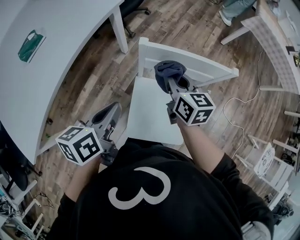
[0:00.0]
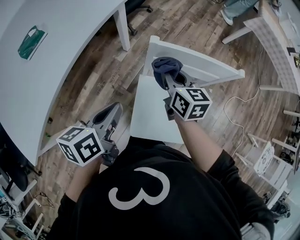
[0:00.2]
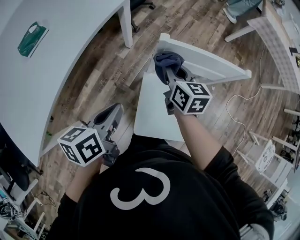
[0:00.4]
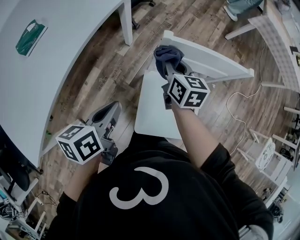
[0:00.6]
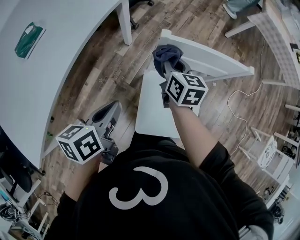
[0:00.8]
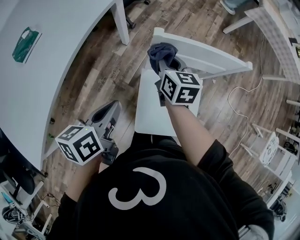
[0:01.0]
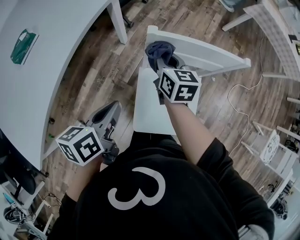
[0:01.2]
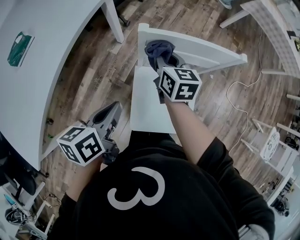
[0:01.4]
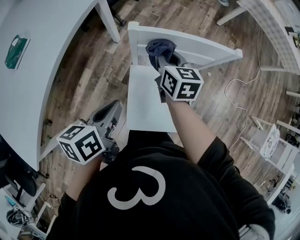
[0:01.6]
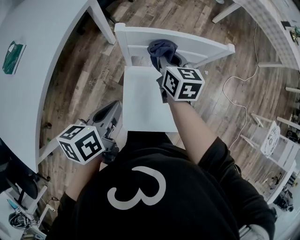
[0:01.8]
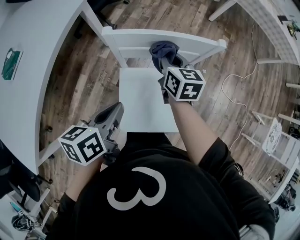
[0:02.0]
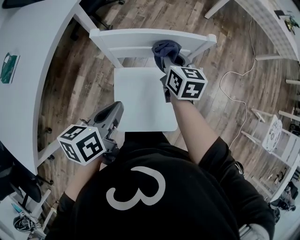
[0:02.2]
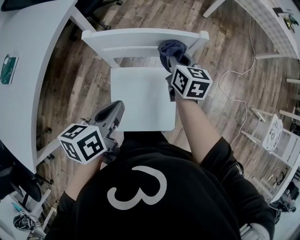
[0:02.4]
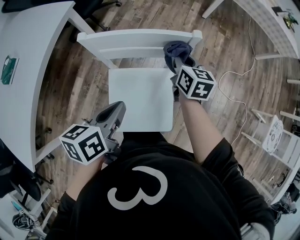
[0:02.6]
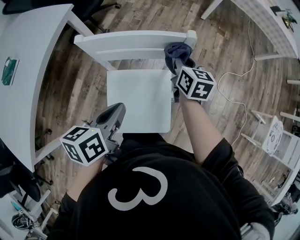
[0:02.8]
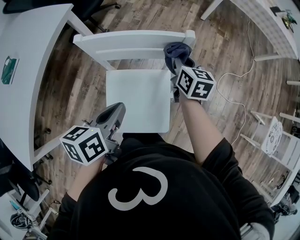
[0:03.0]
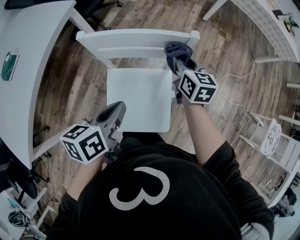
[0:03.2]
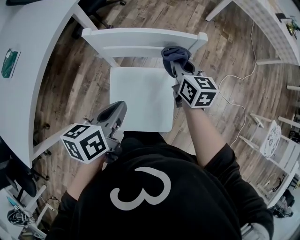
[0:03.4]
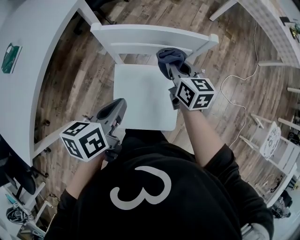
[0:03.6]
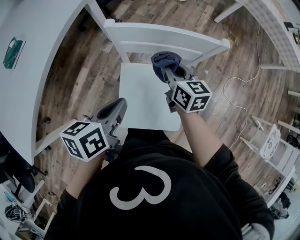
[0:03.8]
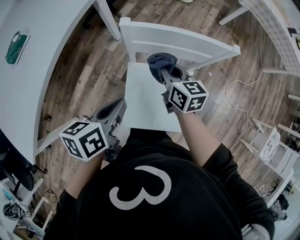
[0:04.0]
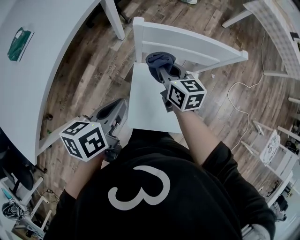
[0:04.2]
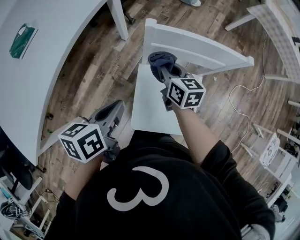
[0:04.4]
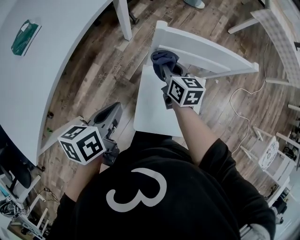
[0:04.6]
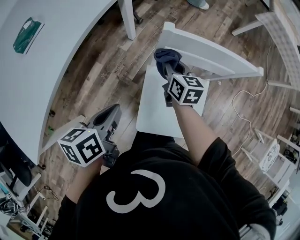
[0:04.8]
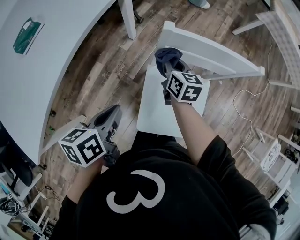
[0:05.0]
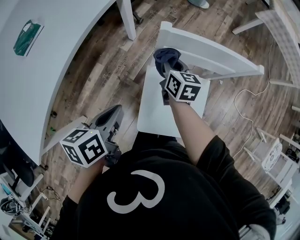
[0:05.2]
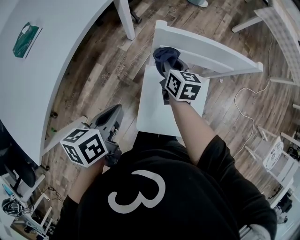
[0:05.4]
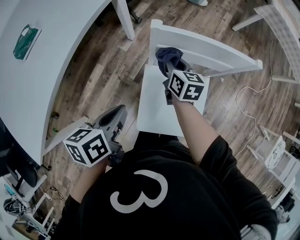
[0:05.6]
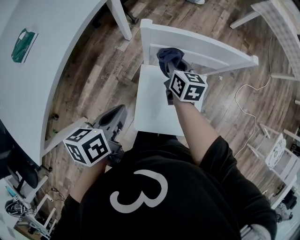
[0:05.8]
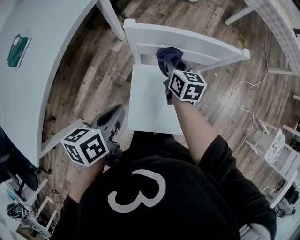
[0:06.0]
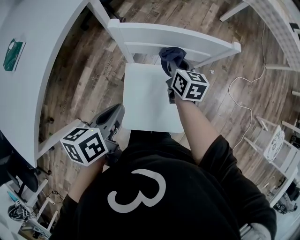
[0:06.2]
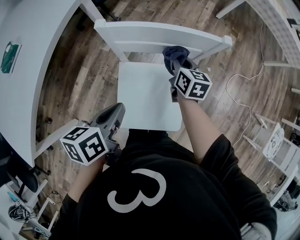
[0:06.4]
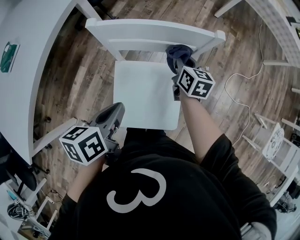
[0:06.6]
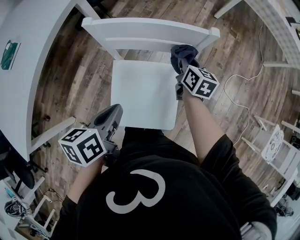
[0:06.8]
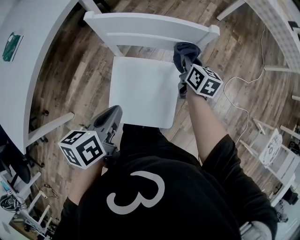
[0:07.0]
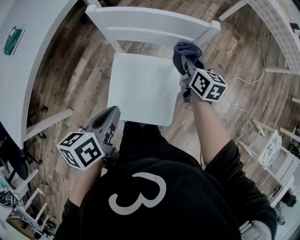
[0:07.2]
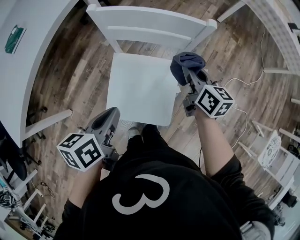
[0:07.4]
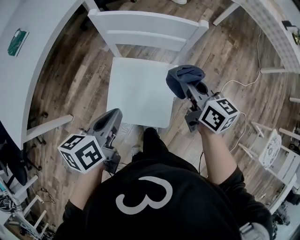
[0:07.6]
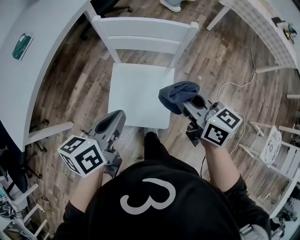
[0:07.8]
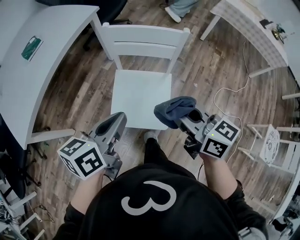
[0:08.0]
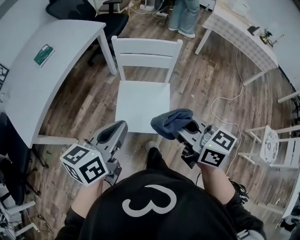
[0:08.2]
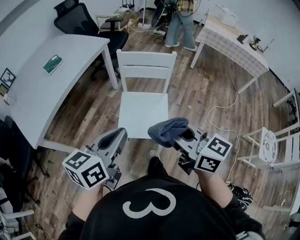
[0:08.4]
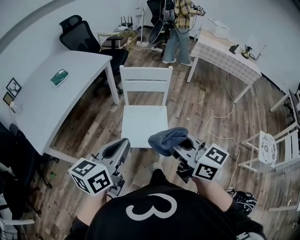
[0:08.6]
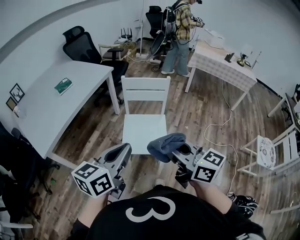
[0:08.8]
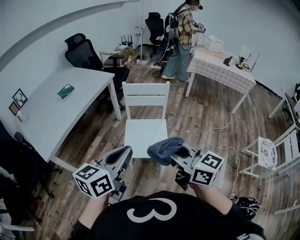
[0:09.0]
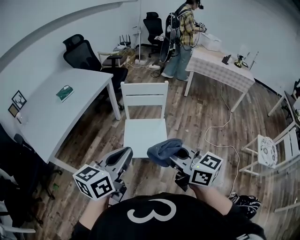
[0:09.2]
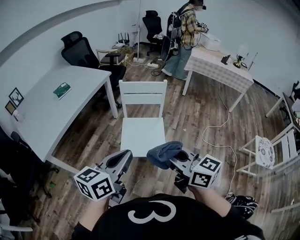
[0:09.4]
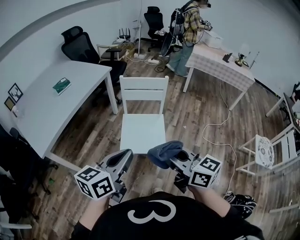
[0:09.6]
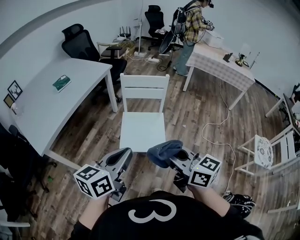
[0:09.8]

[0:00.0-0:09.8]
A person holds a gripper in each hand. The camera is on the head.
0:00.0 to 0:01.4: The right gripper changes place by roughly 5 cm.
0:01.4 to 0:02.8: The two grippers go approximately 20 cm to the right.
0:02.8 to 0:04.2: The right gripper is displaced to the left by about 25 cm, and rotates roughly 20 degrees, while the left gripper moves to the left, roughly 15 cm.
0:04.2 to 0:05.6: The right gripper changes place by about 5 cm.
0:05.6 to 0:07.0: The left gripper heads to the right, covering roughly 15 cm; the right gripper goes some 25 cm to the right.
0:07.0 to 0:08.4: The left gripper heads backward and upward, covering about 30 cm, and turns by some 30 degrees, while the right gripper moves backward and upward, some 60 cm, and turns by some 40 degrees.
0:08.4 to 0:09.8: Both grippers travel together backward, some 10 cm.

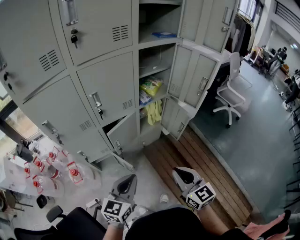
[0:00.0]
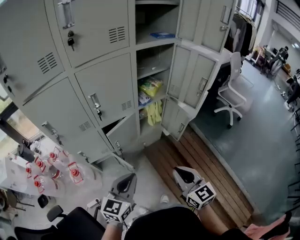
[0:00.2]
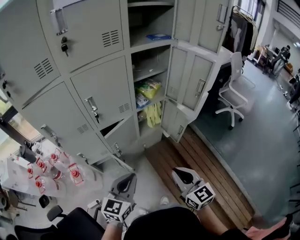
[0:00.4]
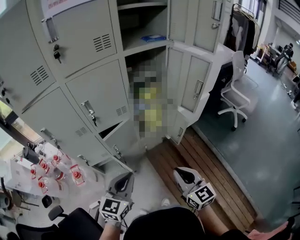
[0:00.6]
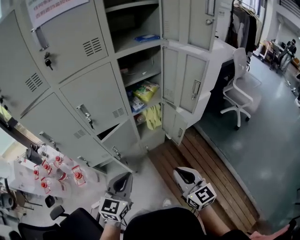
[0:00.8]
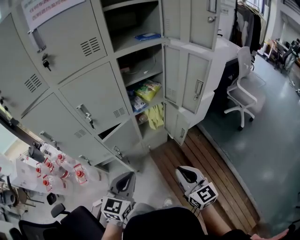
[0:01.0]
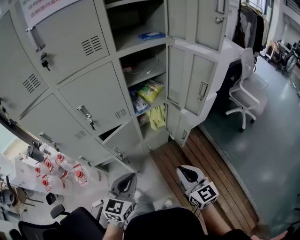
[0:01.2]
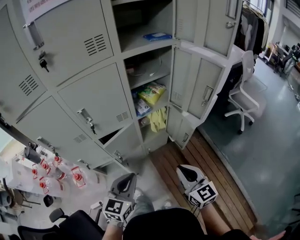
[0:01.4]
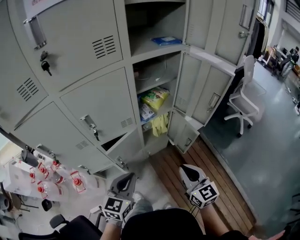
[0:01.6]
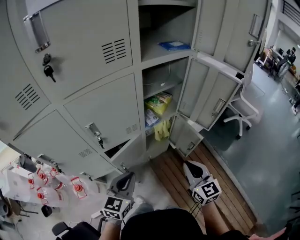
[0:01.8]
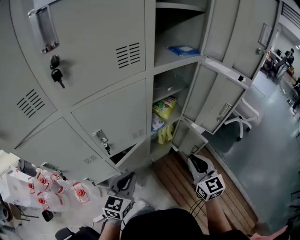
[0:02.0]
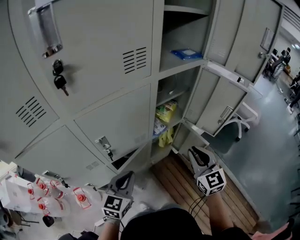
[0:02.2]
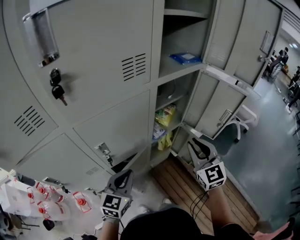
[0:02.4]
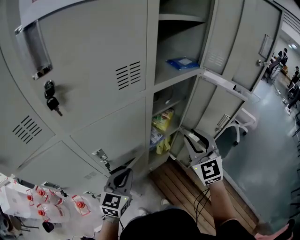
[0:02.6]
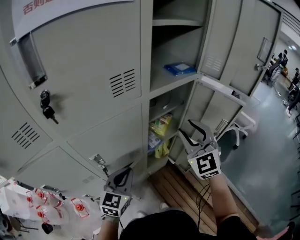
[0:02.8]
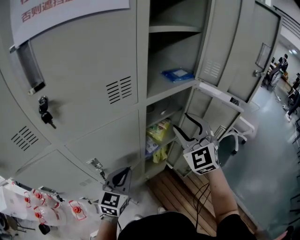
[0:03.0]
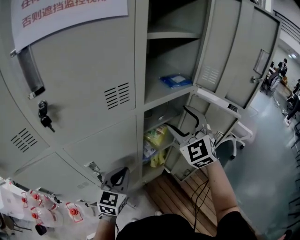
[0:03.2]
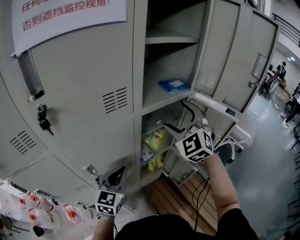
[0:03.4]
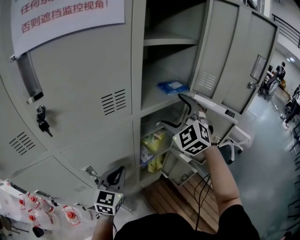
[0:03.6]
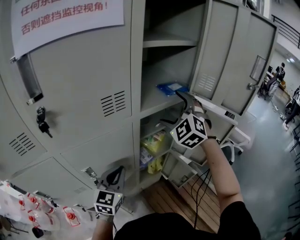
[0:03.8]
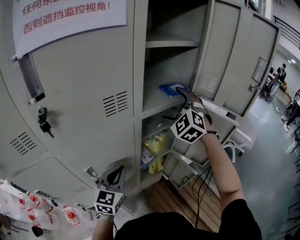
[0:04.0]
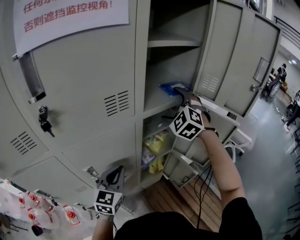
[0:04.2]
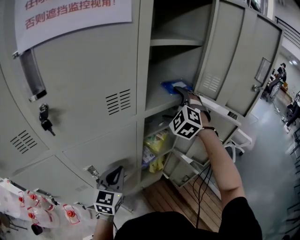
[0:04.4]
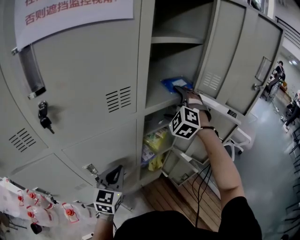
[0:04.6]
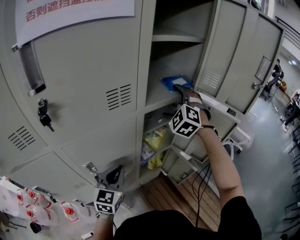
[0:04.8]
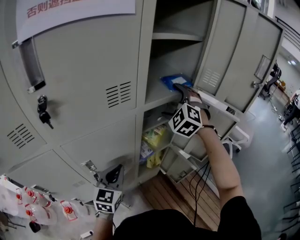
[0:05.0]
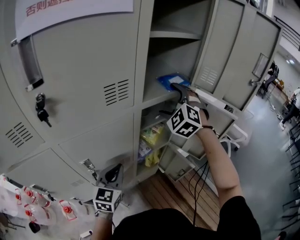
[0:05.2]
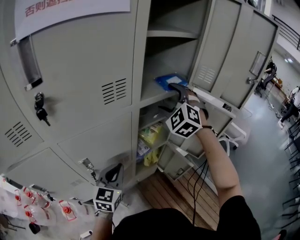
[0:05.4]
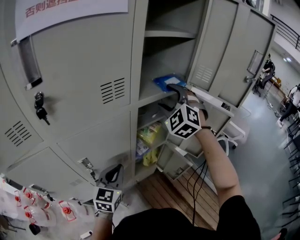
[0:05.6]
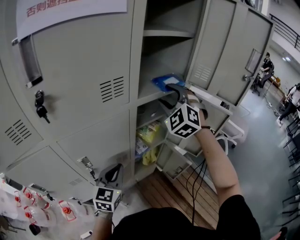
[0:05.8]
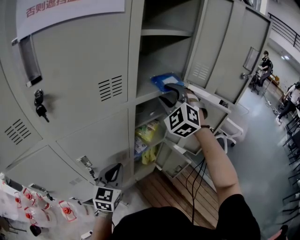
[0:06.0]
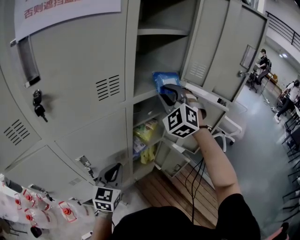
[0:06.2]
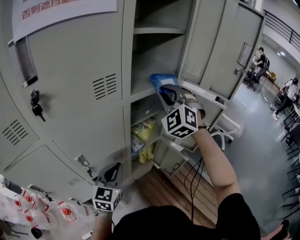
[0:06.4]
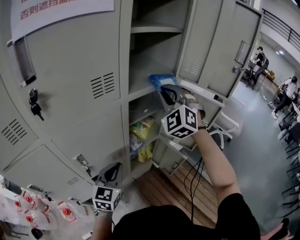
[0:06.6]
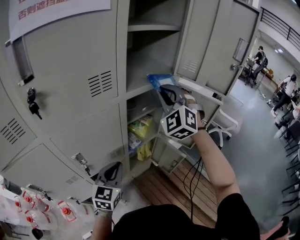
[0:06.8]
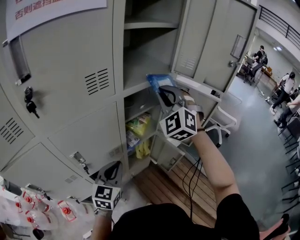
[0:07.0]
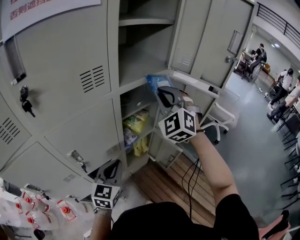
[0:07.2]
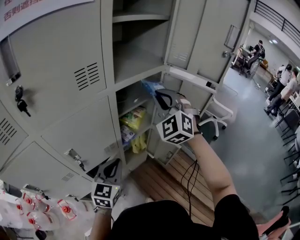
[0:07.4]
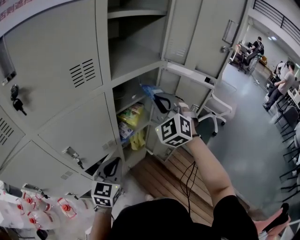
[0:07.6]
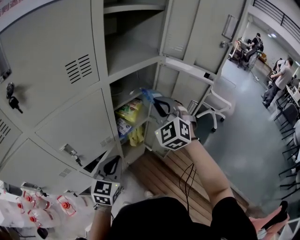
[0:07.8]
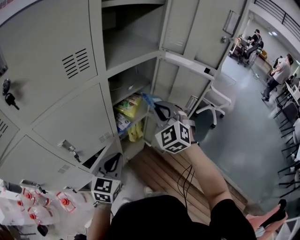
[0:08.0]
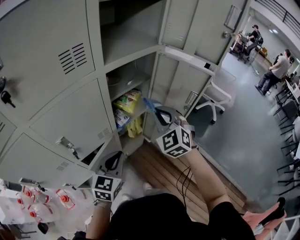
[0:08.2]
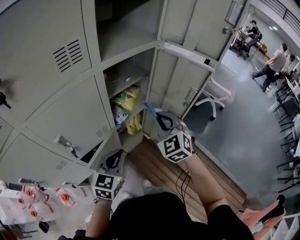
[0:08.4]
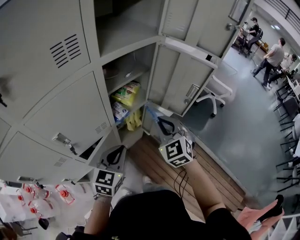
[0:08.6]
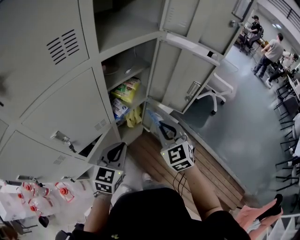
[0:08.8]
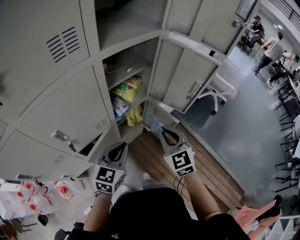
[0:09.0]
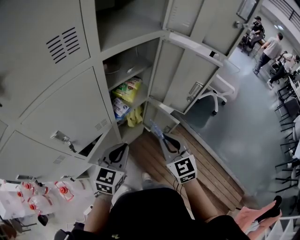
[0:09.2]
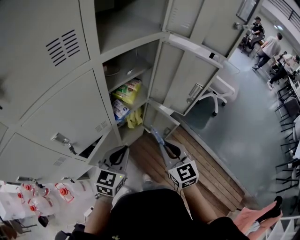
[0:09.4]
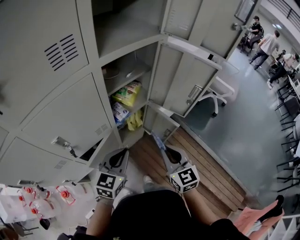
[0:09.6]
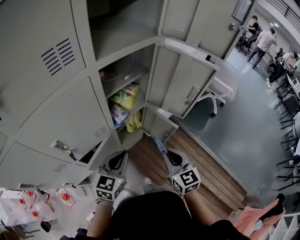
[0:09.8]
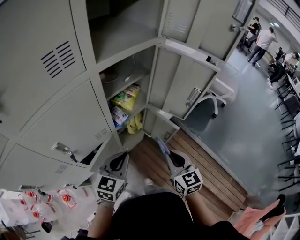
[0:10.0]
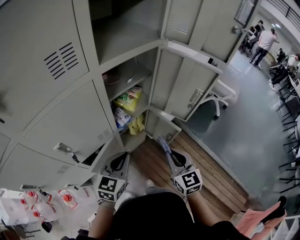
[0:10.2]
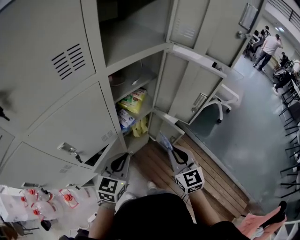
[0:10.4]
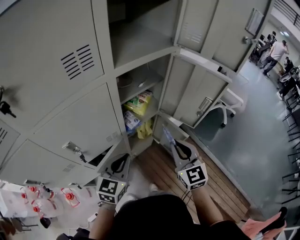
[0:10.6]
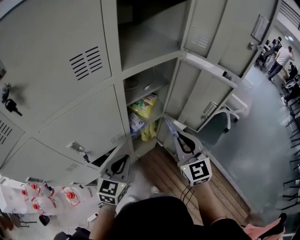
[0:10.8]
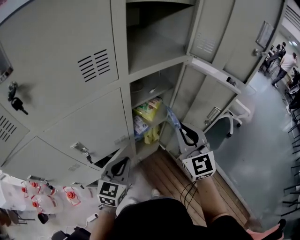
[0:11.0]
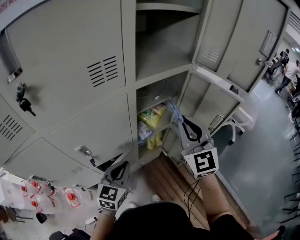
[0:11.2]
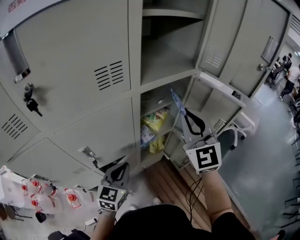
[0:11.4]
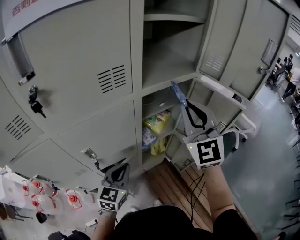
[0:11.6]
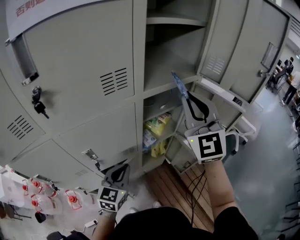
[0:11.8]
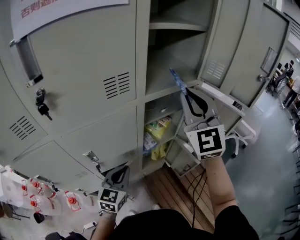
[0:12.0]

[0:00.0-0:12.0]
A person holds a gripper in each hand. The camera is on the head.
0:00.0 to 0:01.6: The right gripper travels forward and to the right by about 15 cm, while the left gripper goes roughly 15 cm forward.
0:01.6 to 0:03.0: The right gripper travels forward and upward by roughly 35 cm, twists roughly 50 degrees counterclockwise, seen from behind, and opens. The left gripper moves forward, approximately 20 cm.
0:03.0 to 0:04.4: The right gripper travels forward by some 15 cm, swivels approximately 30 degrees, and opens its fingers.
0:04.4 to 0:06.0: The right gripper shifts some 5 cm backward, and closes its fingers.
0:06.0 to 0:07.6: The right gripper is displaced backward, downward and to the right by approximately 10 cm; the left gripper shifts roughly 5 cm to the right.
0:07.6 to 0:09.0: The right gripper heads downward and backward, covering some 20 cm, and turns by roughly 40 degrees, while the left gripper changes place by about 5 cm.
0:10.4 to 0:12.0: The left gripper heads to the left, covering approximately 10 cm, while the right gripper heads upward and forward, covering about 35 cm, and changes its angle by some 40 degrees.

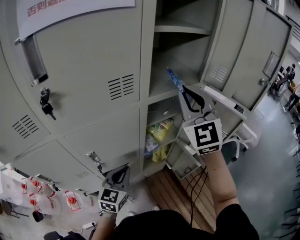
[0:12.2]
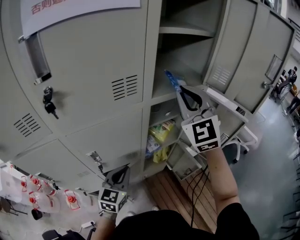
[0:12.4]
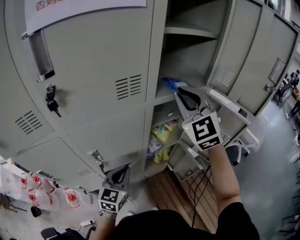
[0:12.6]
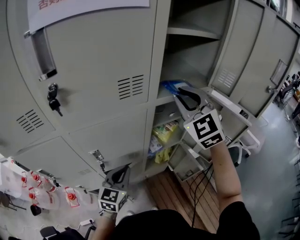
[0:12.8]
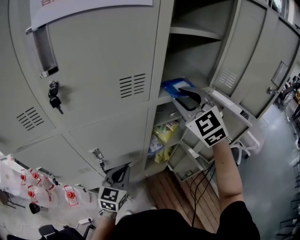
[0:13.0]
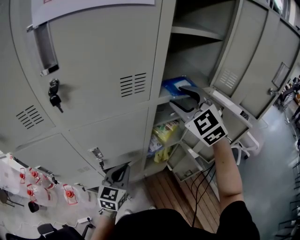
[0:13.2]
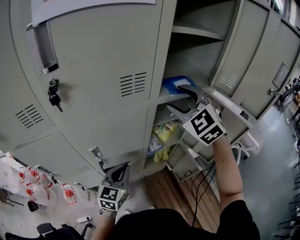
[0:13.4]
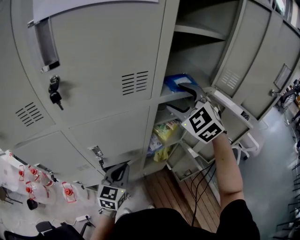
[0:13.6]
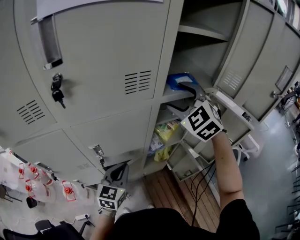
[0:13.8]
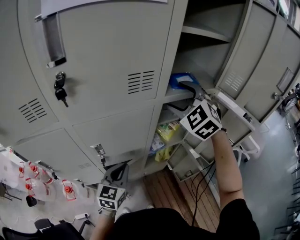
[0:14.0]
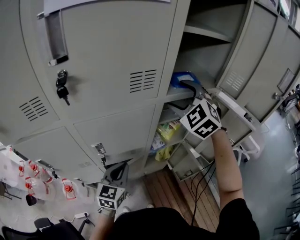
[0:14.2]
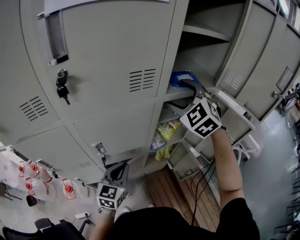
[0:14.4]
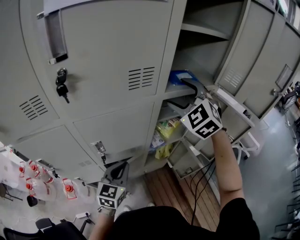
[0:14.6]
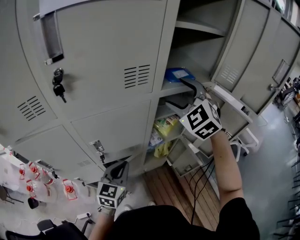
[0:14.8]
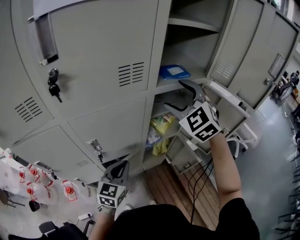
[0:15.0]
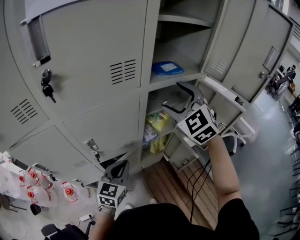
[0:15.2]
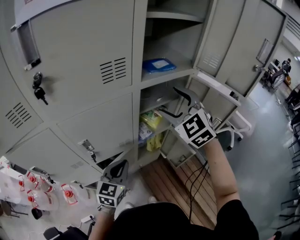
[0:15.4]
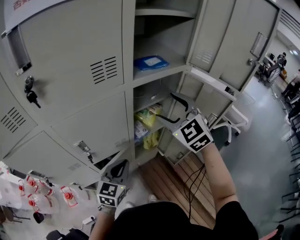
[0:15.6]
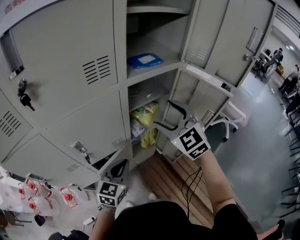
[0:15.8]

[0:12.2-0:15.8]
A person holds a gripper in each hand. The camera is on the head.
0:12.2 to 0:14.0: The right gripper moves downward, to the left and forward, some 10 cm, angles its fingers downward, by approximately 30 degrees, and opens its fingers.
0:14.0 to 0:15.8: The right gripper goes about 15 cm backward, downward and to the right, and turns by about 20 degrees, while the left gripper travels to the right by about 5 cm.
